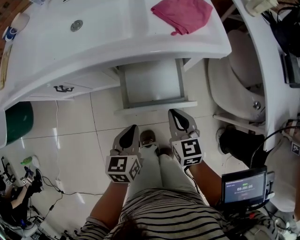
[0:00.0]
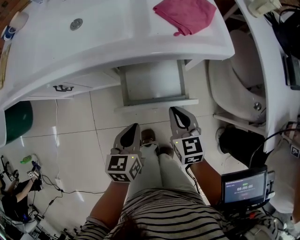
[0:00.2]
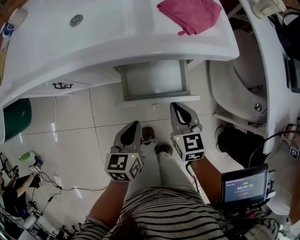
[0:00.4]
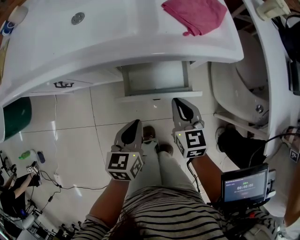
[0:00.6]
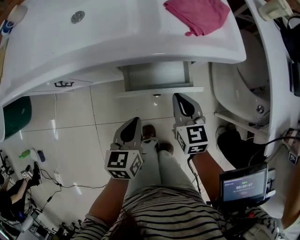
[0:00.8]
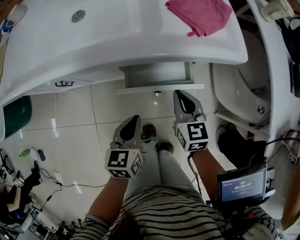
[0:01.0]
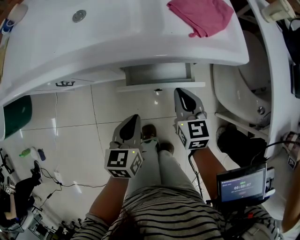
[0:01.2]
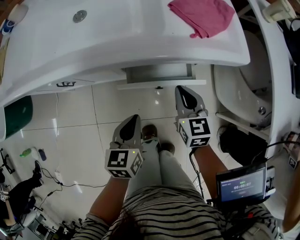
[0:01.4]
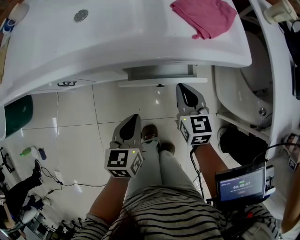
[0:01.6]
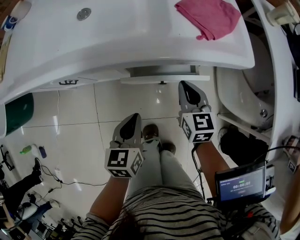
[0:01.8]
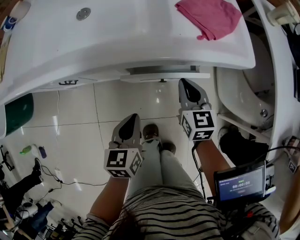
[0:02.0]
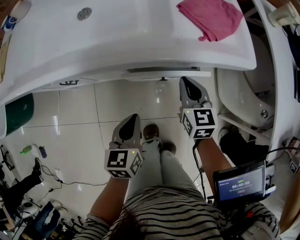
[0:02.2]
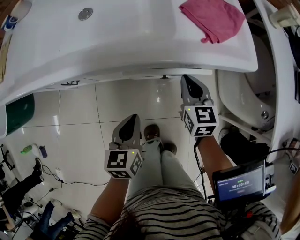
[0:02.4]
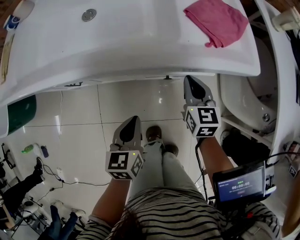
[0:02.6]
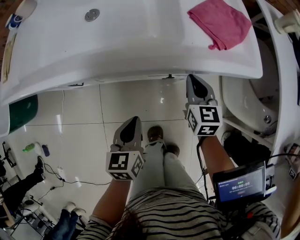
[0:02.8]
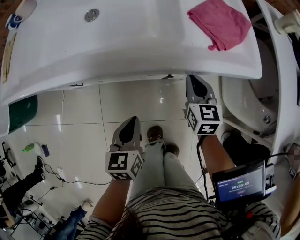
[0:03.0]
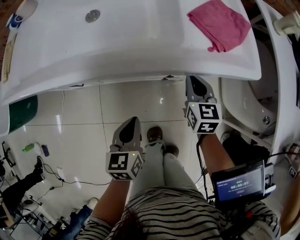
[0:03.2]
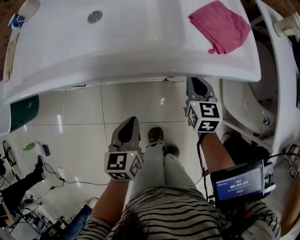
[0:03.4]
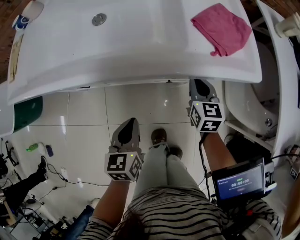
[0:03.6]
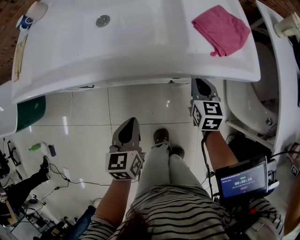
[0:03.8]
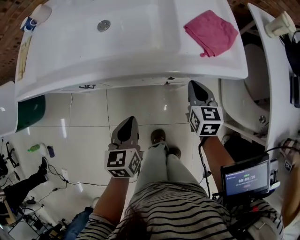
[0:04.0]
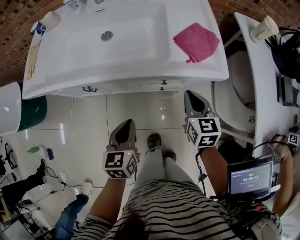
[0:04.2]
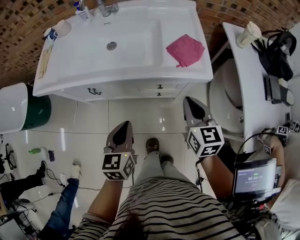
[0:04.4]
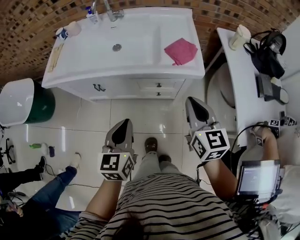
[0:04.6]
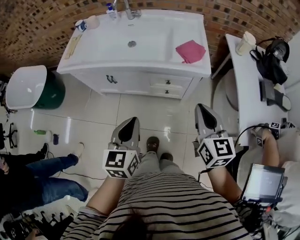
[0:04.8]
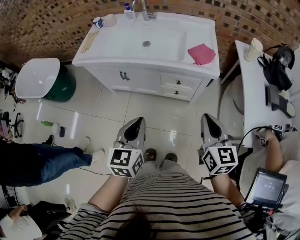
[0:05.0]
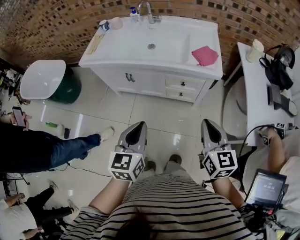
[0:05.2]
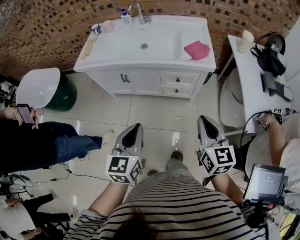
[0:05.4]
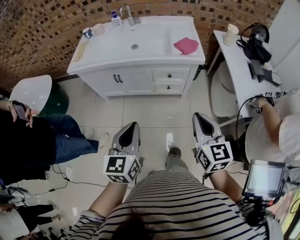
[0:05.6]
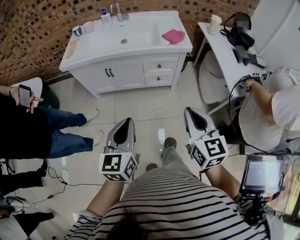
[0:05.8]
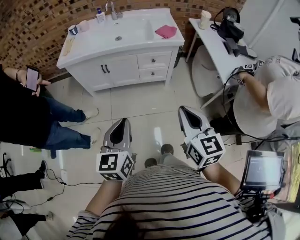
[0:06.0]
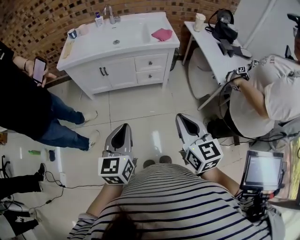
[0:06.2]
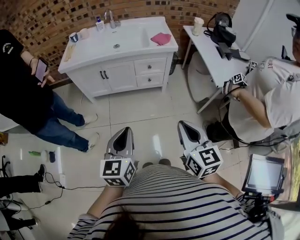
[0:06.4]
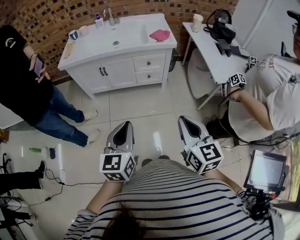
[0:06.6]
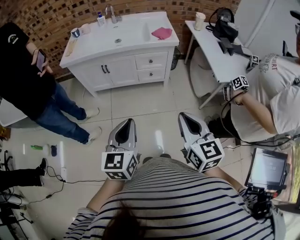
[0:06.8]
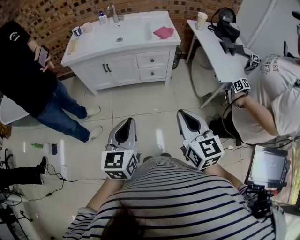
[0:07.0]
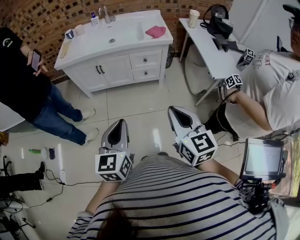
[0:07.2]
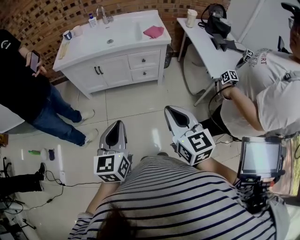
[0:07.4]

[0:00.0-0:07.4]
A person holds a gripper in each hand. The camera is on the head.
0:00.0 to 0:01.4: The right gripper shifts about 10 cm forward.
0:01.4 to 0:03.0: The right gripper goes roughly 5 cm forward.
0:03.0 to 0:04.4: The left gripper heads upward, covering about 20 cm. The right gripper travels upward and backward by roughly 25 cm.
0:04.4 to 0:06.0: The left gripper moves backward and upward, about 40 cm; the right gripper moves backward, approximately 50 cm.
0:06.0 to 0:07.4: Both grippers travel together backward, some 5 cm.

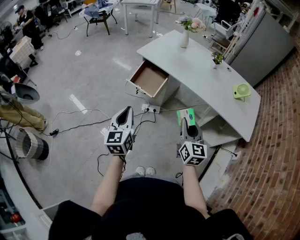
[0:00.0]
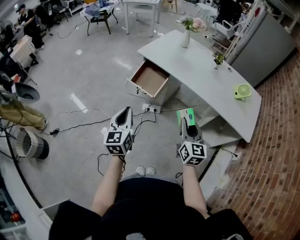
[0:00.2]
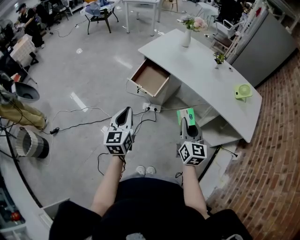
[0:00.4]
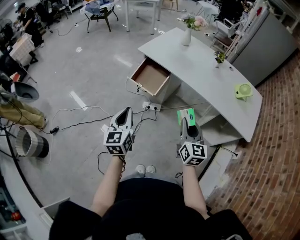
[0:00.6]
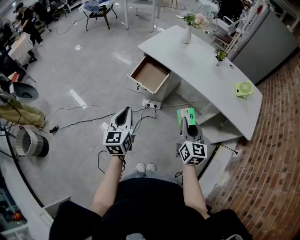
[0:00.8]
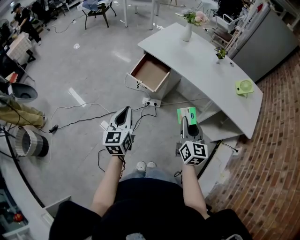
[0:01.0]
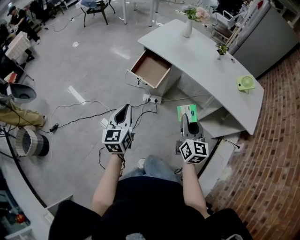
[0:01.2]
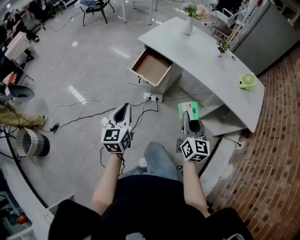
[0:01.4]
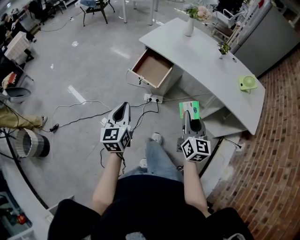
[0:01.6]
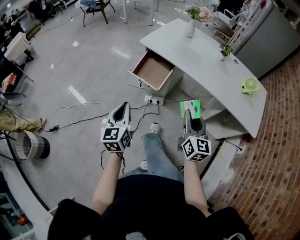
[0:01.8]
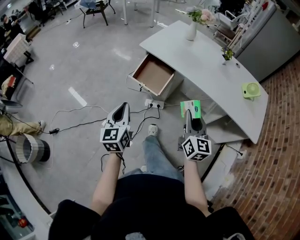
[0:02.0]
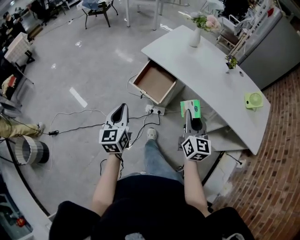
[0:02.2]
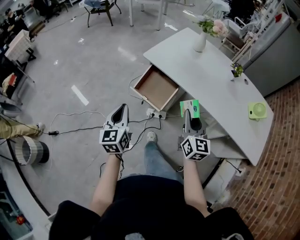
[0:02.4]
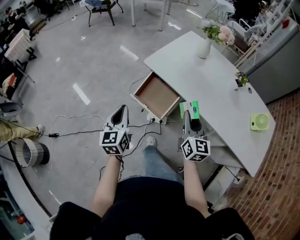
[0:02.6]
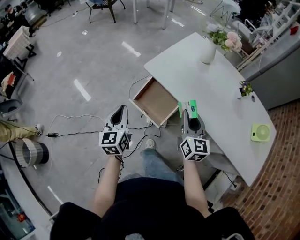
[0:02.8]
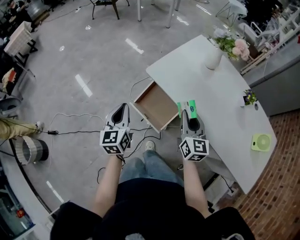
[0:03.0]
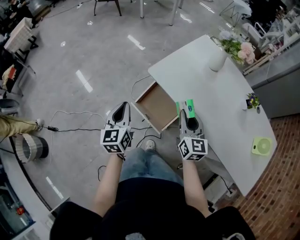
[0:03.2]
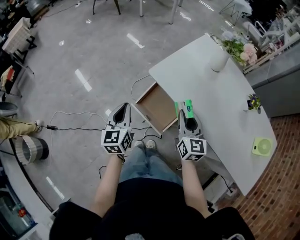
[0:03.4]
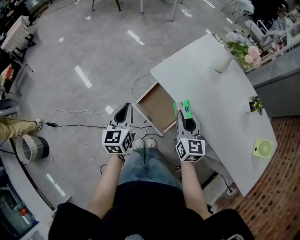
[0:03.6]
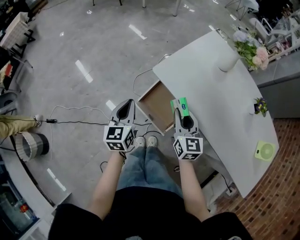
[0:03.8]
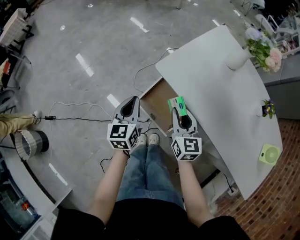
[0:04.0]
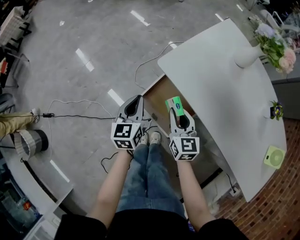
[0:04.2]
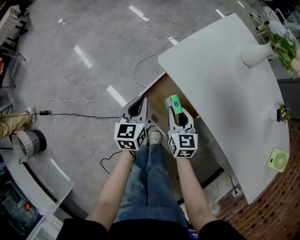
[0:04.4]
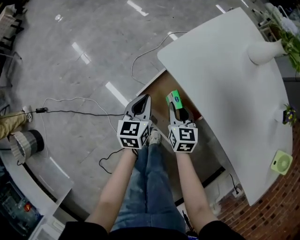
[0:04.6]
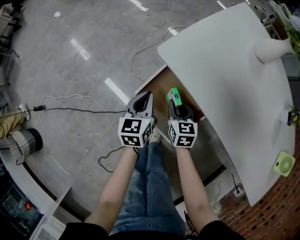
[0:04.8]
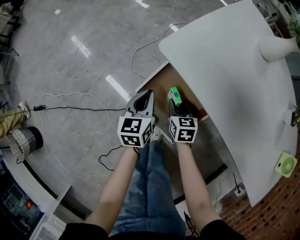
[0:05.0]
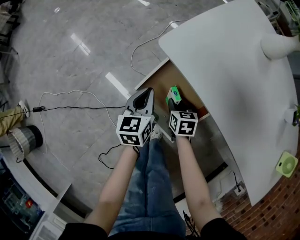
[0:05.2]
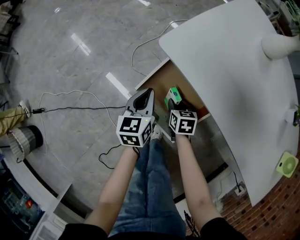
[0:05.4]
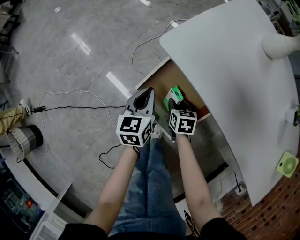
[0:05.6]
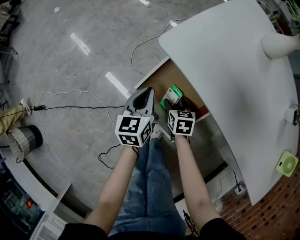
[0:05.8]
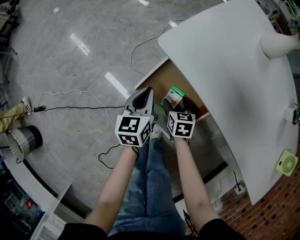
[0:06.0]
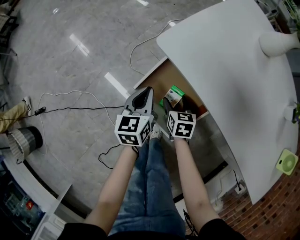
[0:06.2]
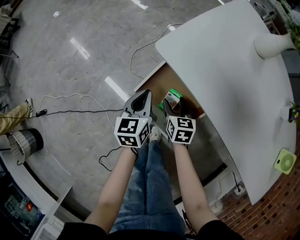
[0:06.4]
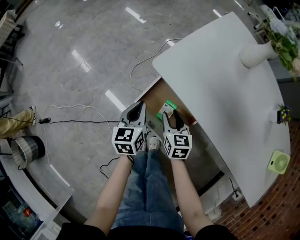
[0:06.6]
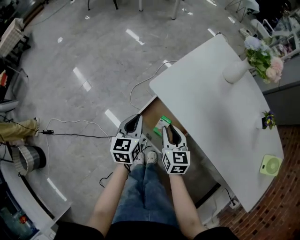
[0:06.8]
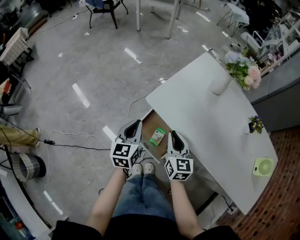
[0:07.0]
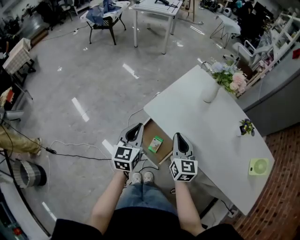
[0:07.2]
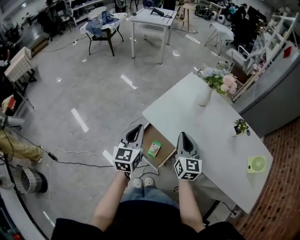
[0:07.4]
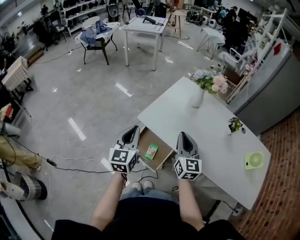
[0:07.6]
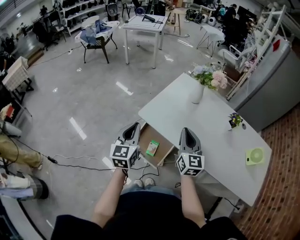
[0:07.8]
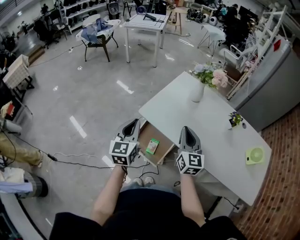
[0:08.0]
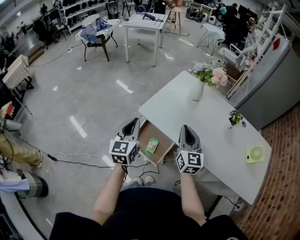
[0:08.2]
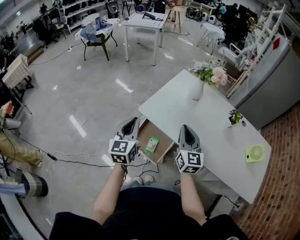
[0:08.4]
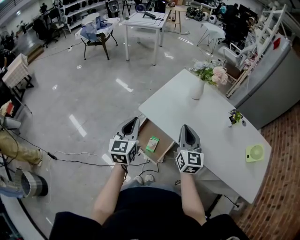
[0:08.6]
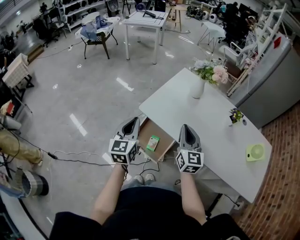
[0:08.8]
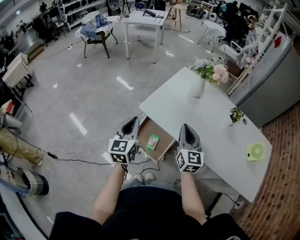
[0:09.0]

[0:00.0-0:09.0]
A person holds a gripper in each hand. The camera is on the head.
0:00.0 to 0:01.6: The left gripper ends up about 5 cm from where it was.
0:01.6 to 0:03.0: Both grippers travel together forward, about 40 cm.
0:03.0 to 0:04.4: The right gripper moves downward, forward and to the left, about 30 cm, and changes its angle by about 20 degrees, while the left gripper goes roughly 25 cm downward and forward.
0:04.4 to 0:06.0: The right gripper moves downward, roughly 20 cm, swivels about 20 degrees, and opens up. Meanwhile the left gripper moves downward, roughly 10 cm.
0:06.0 to 0:07.6: The grippers both shift upward by approximately 50 cm. The left gripper turns by approximately 30 degrees; the right gripper points its fingers some 50 degrees further upward, and closes.
0:07.6 to 0:09.0: The grippers stay close to where they were, moving slightly.

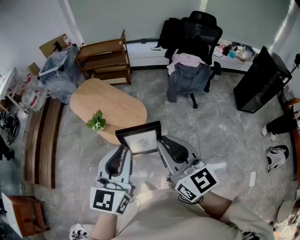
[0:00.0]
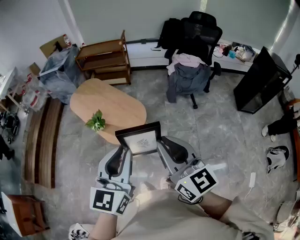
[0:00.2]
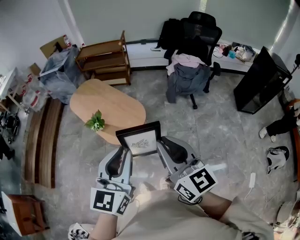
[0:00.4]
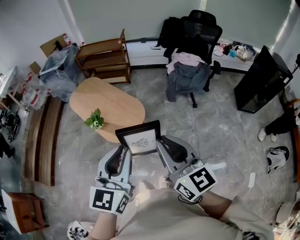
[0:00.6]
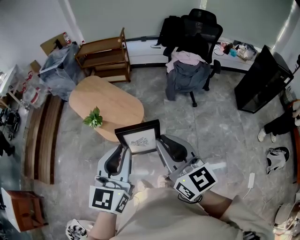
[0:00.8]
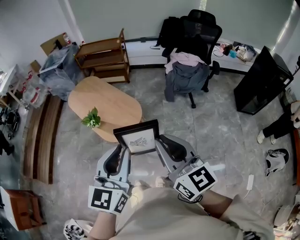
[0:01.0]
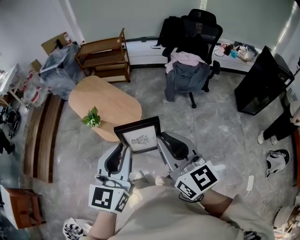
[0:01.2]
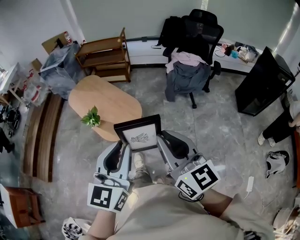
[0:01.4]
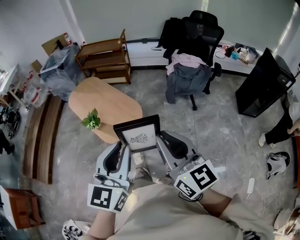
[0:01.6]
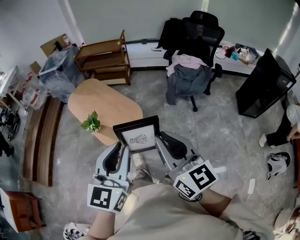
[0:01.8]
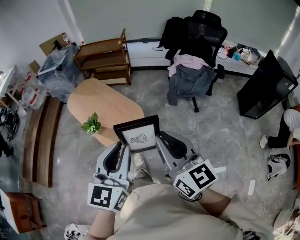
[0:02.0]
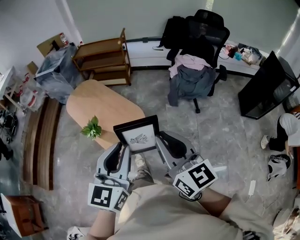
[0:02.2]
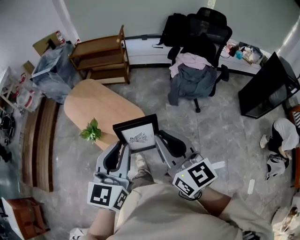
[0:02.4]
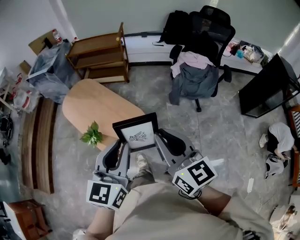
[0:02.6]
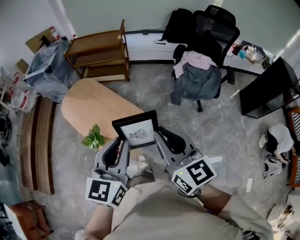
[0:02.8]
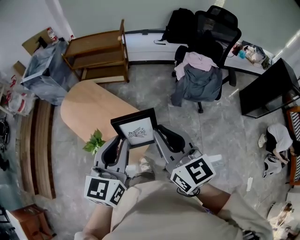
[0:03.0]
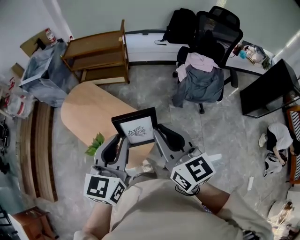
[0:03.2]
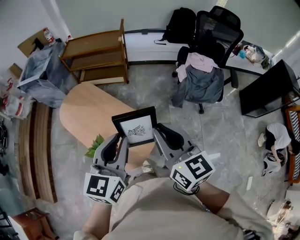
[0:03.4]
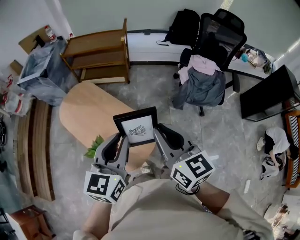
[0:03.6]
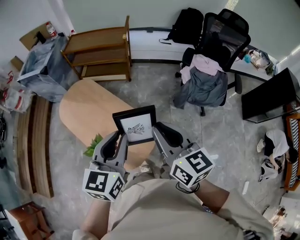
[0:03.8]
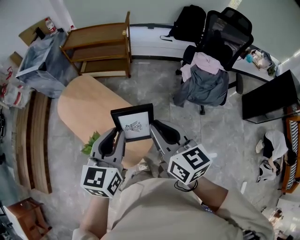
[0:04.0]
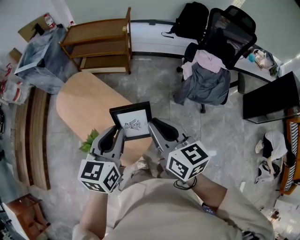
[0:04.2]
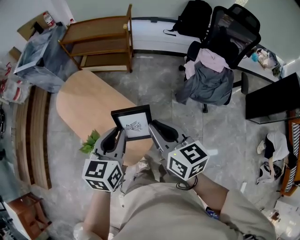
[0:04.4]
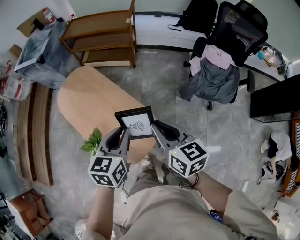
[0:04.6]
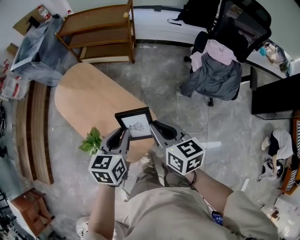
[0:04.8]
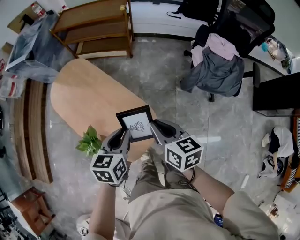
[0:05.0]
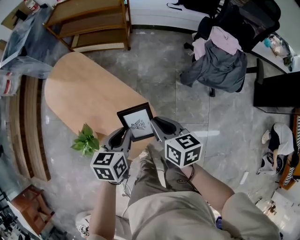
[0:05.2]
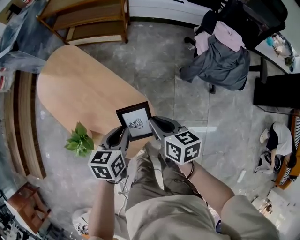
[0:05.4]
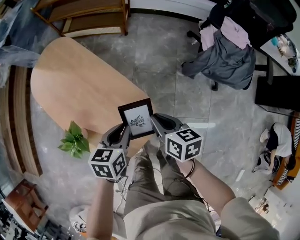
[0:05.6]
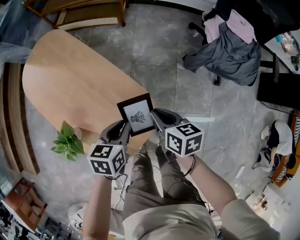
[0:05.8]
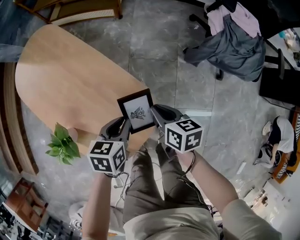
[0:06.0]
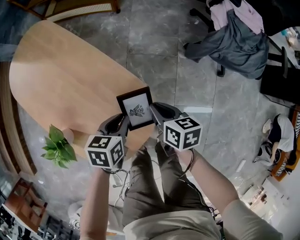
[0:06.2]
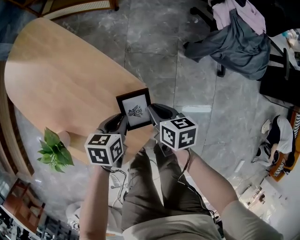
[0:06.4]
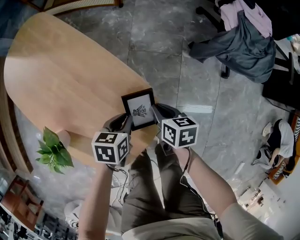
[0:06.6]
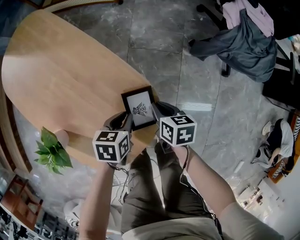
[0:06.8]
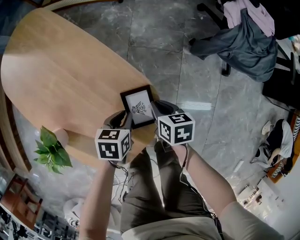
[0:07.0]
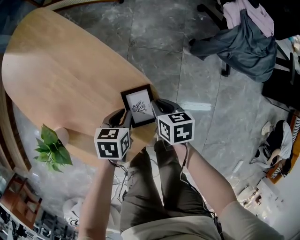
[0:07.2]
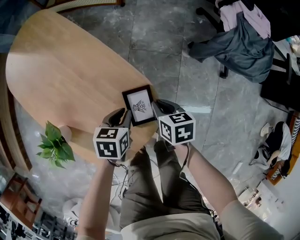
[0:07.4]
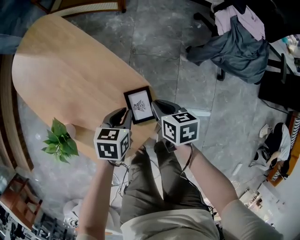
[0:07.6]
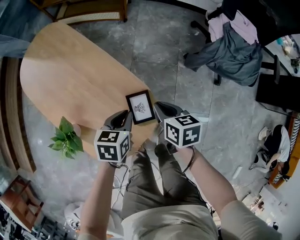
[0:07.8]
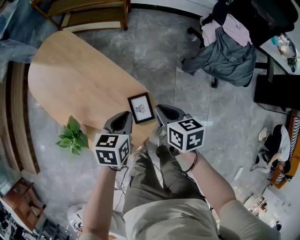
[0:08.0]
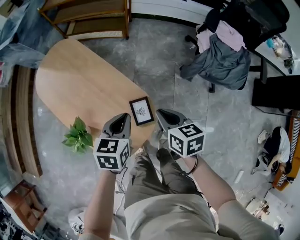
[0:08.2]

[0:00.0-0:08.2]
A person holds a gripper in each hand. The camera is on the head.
0:00.0 to 0:01.6: The two grippers go some 5 cm to the right.
0:01.6 to 0:03.2: The two grippers travel together, forward, approximately 40 cm.
0:03.2 to 0:05.0: The grippers both shift downward and forward by some 30 cm. The left gripper rotates roughly 30 degrees. Meanwhile the right gripper changes its angle by approximately 30 degrees.
0:05.0 to 0:06.6: Both grippers travel together downward, about 40 cm. The left gripper swivels approximately 20 degrees. The right gripper changes its angle by about 30 degrees.
0:06.6 to 0:08.2: The two grippers go some 30 cm upward. The left gripper rotates some 20 degrees.
